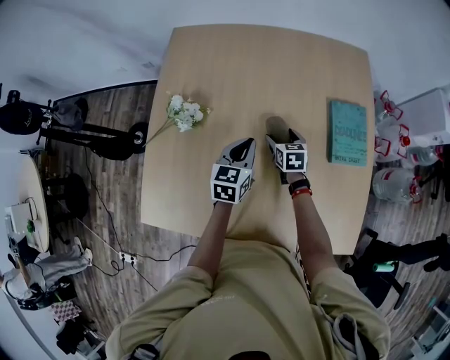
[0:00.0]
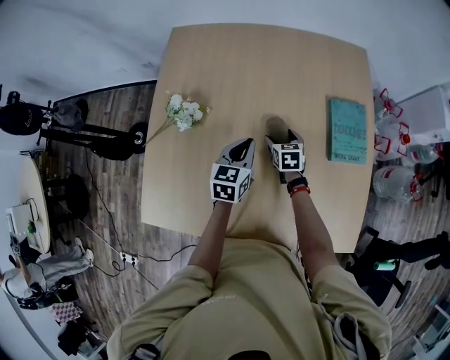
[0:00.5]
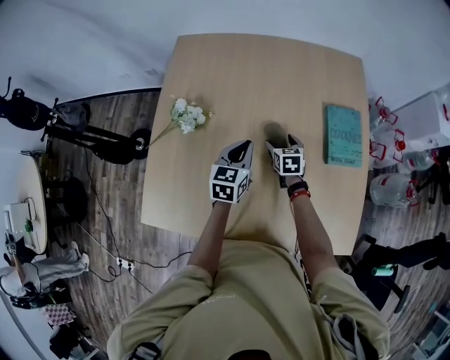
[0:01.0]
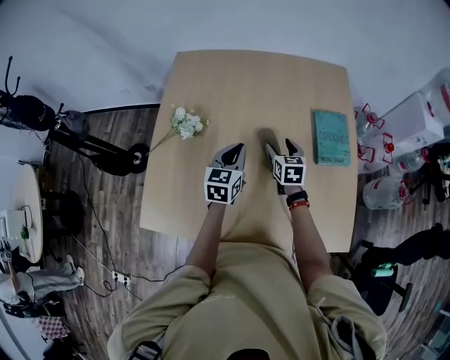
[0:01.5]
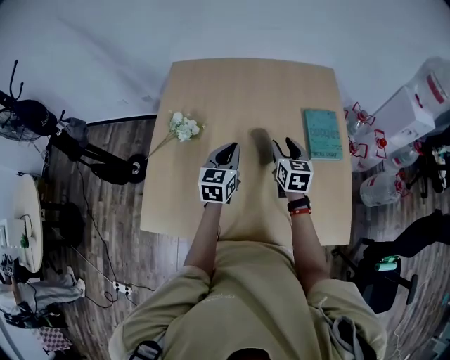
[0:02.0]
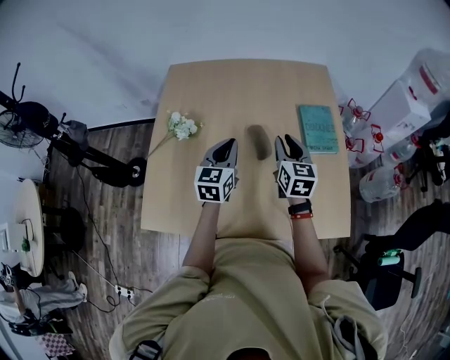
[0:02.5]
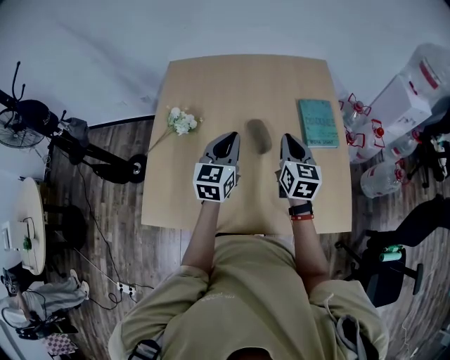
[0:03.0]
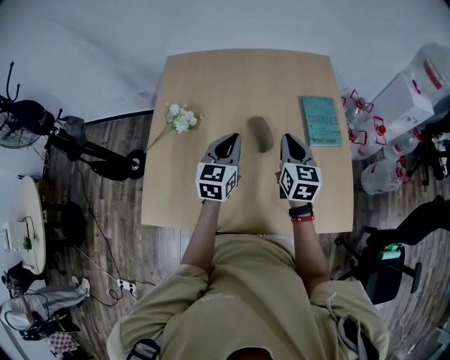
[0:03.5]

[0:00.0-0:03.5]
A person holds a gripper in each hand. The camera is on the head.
0:00.0 to 0:02.0: The left gripper shifts roughly 15 cm backward and upward. The right gripper heads upward and backward, covering some 25 cm, changes its angle by about 20 degrees, and closes its fingers.
0:02.0 to 0:03.5: The right gripper travels backward and upward by some 10 cm, and closes.

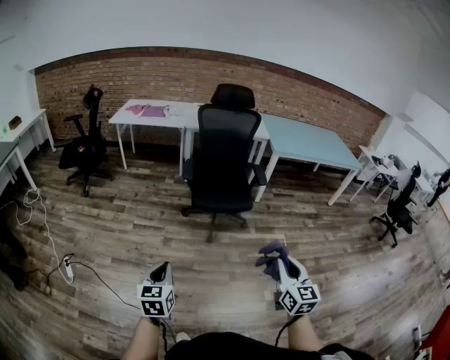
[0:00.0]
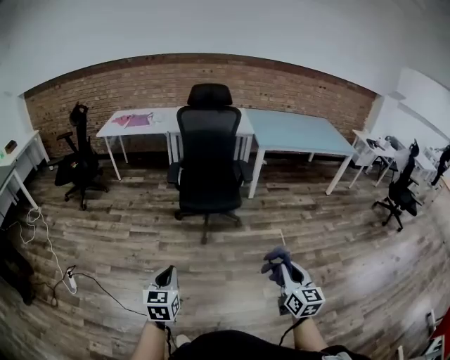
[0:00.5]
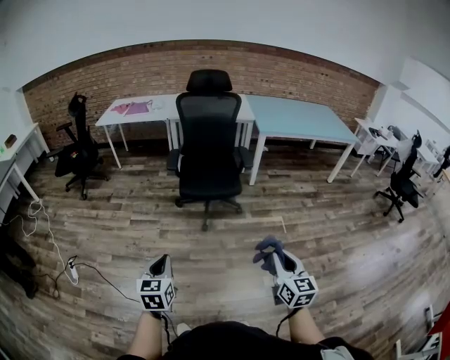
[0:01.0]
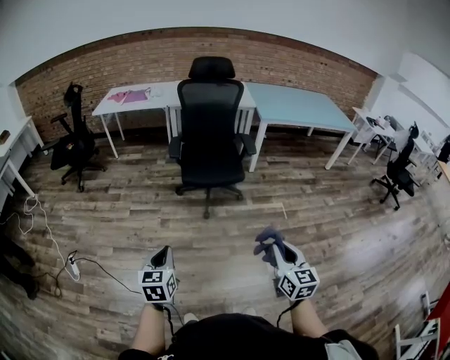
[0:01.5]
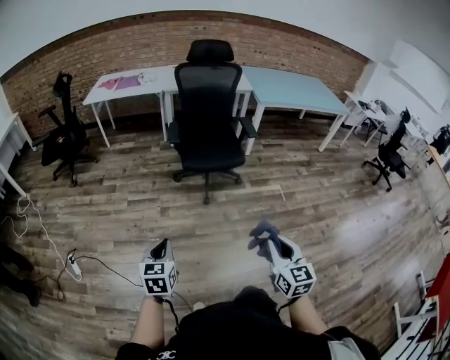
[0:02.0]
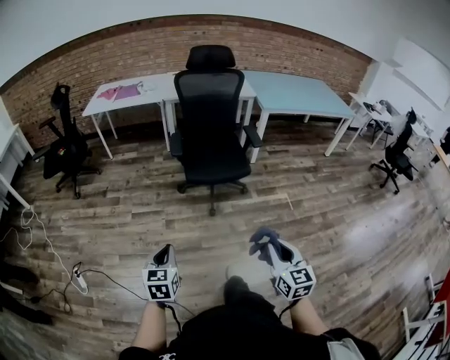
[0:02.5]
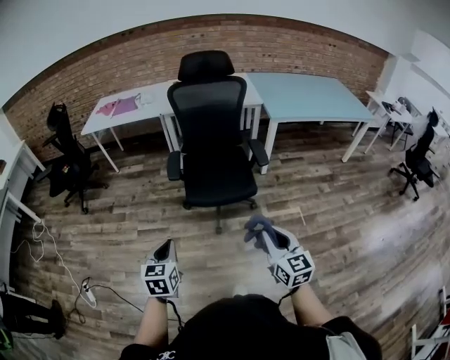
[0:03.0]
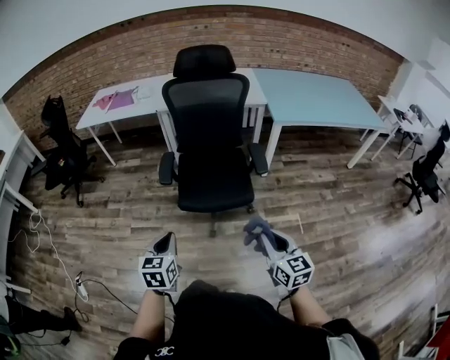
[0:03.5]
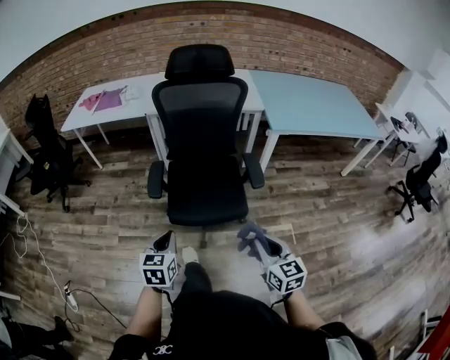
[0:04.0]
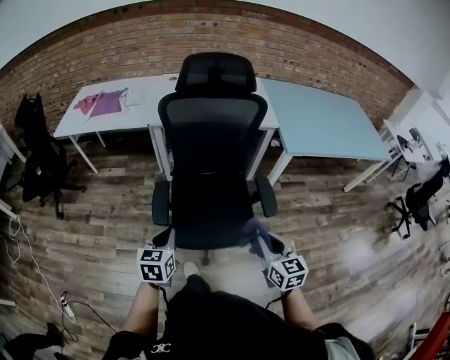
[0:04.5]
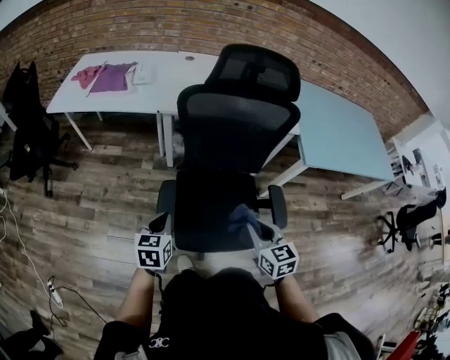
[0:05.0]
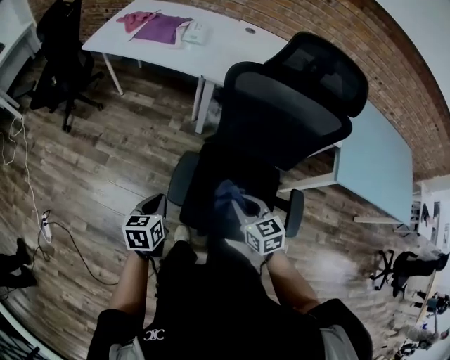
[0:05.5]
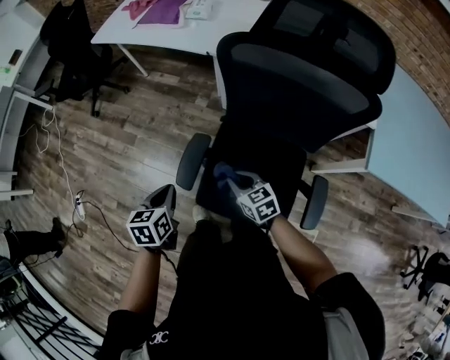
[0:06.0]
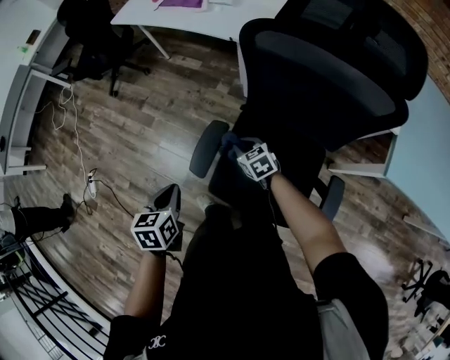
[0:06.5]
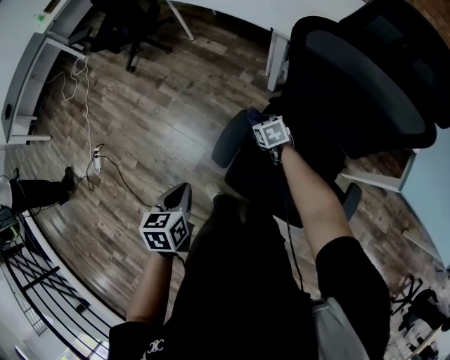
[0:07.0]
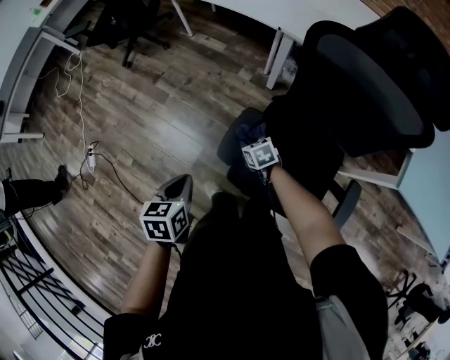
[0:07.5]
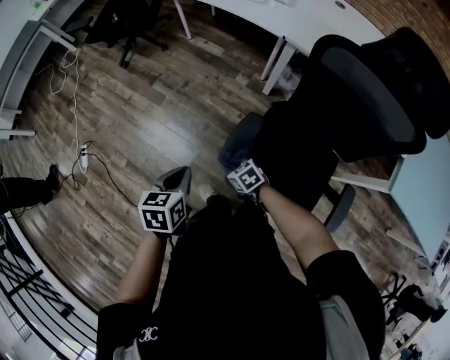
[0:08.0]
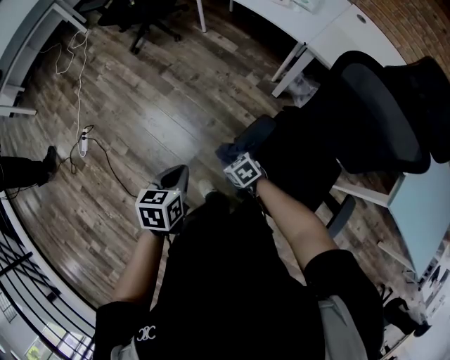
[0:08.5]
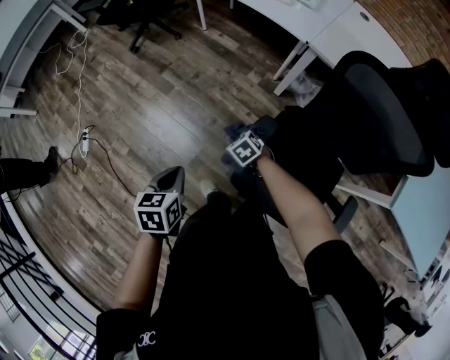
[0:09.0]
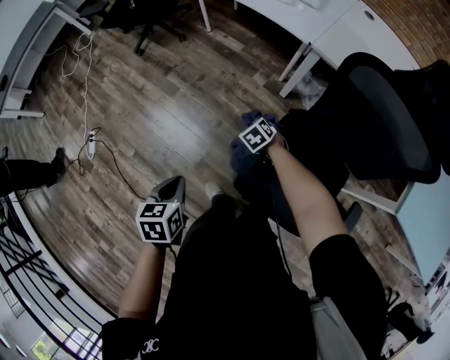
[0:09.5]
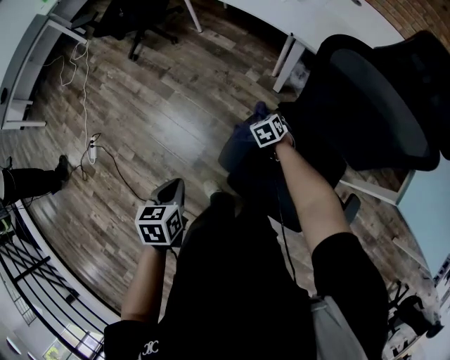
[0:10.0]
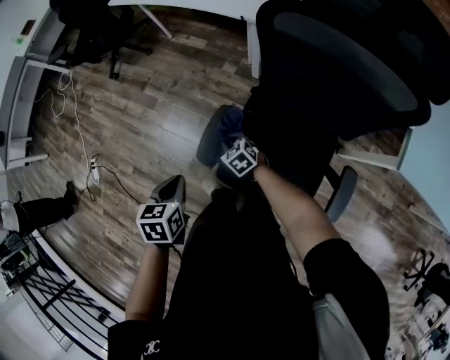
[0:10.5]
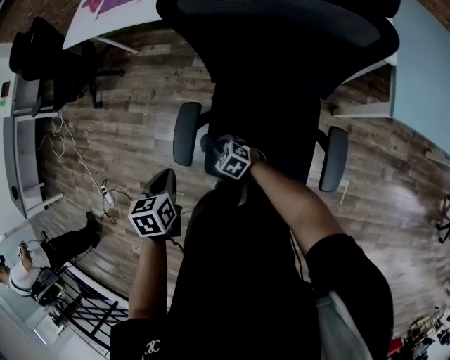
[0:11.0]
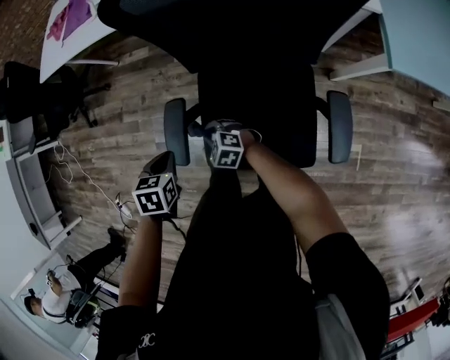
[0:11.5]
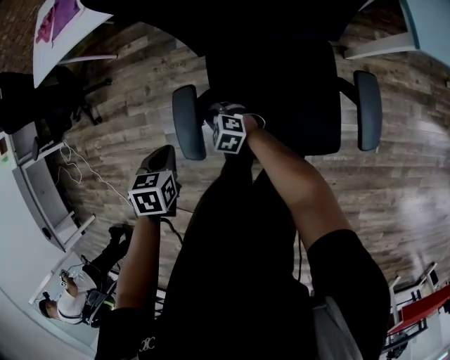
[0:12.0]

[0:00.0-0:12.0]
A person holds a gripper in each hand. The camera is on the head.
0:00.0 to 0:02.0: The left gripper shifts some 5 cm downward, and travels to the right and back again, approximately 15 cm each way. Meanwhile the right gripper shifts roughly 10 cm downward and backward, and reaches approximately 15 cm to the right, then returns.
0:02.0 to 0:04.0: The pair of grippers is taken forward, roughly 50 cm.
0:04.0 to 0:06.0: The left gripper moves roughly 30 cm, and changes its angle by some 40 degrees. The right gripper ends up approximately 50 cm from where it was, and swivels roughly 50 degrees.
0:06.0 to 0:08.0: The right gripper goes some 25 cm to the left and downward, and turns by about 30 degrees; the left gripper is displaced to the left by approximately 10 cm.
0:08.0 to 0:10.0: The right gripper moves forward and to the right, some 25 cm, and changes its angle by about 30 degrees.
0:10.0 to 0:12.0: The left gripper heads to the right, forward and downward, covering roughly 15 cm, and twists about 40 degrees clockwise, seen from behind, while the right gripper heads backward and to the left, covering some 15 cm.

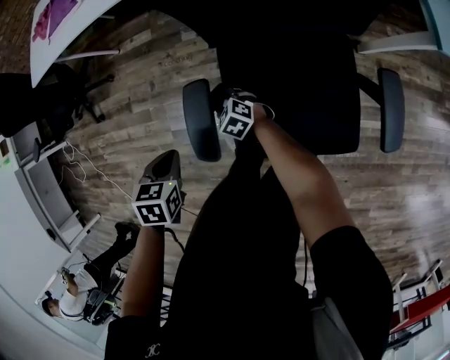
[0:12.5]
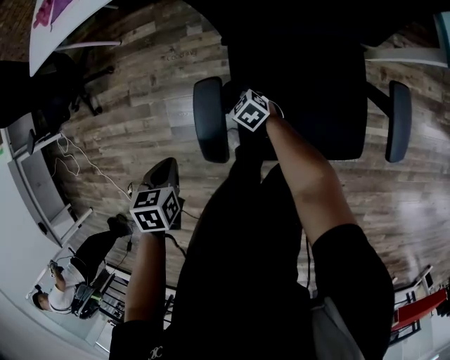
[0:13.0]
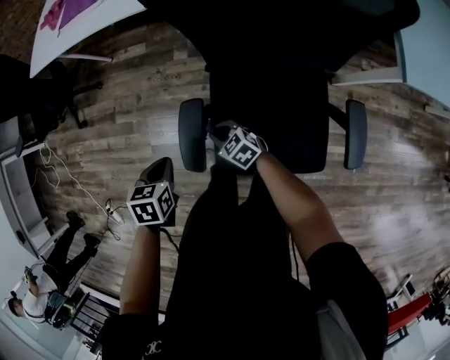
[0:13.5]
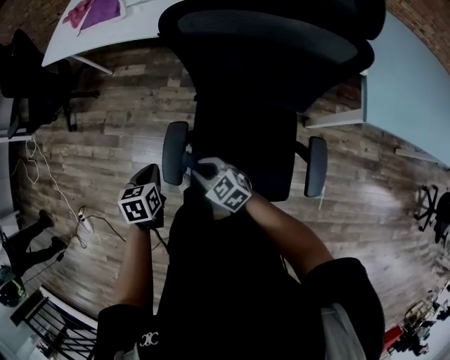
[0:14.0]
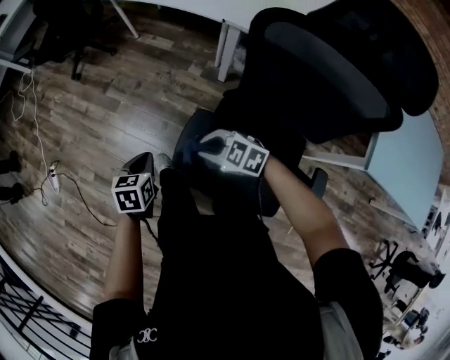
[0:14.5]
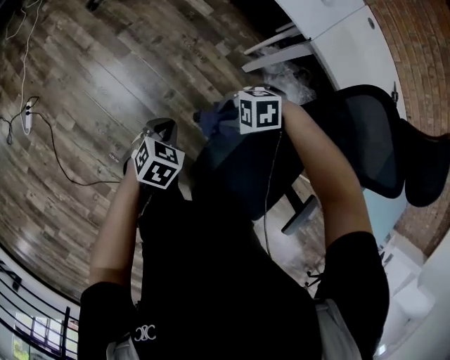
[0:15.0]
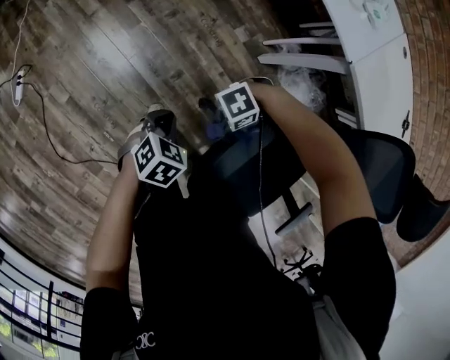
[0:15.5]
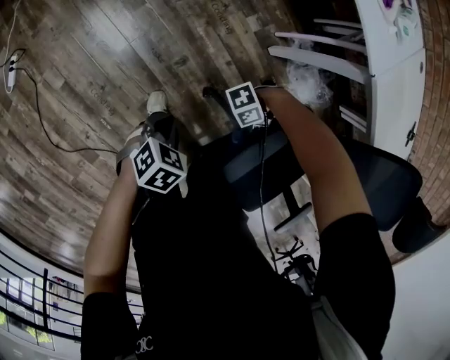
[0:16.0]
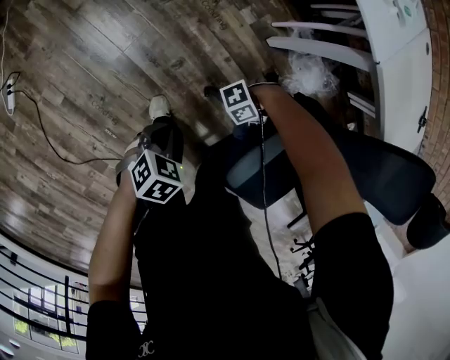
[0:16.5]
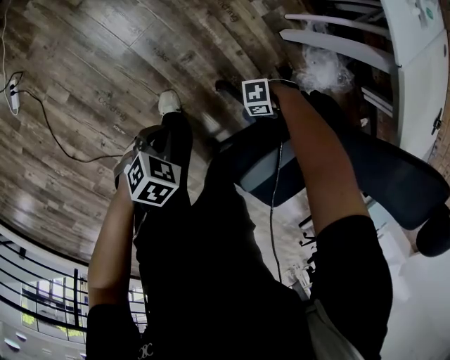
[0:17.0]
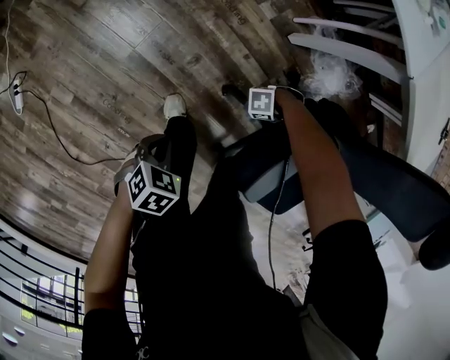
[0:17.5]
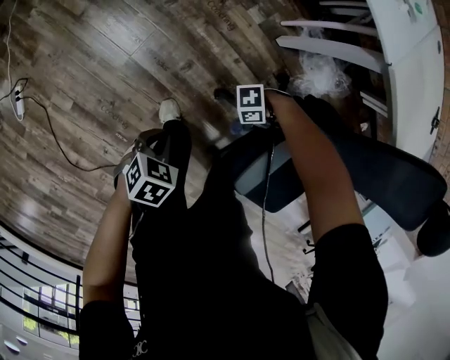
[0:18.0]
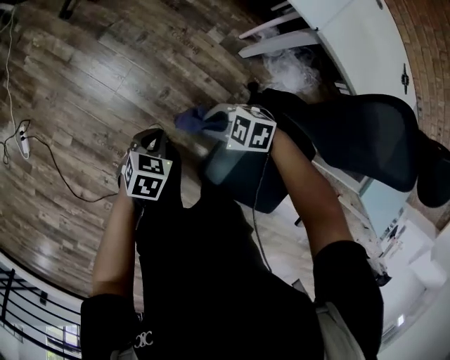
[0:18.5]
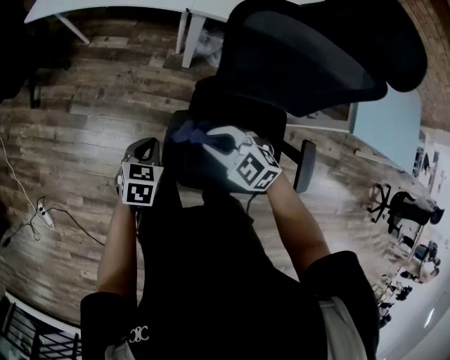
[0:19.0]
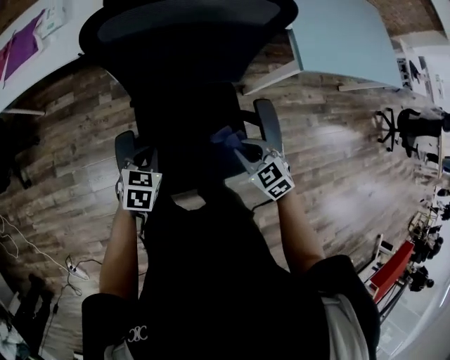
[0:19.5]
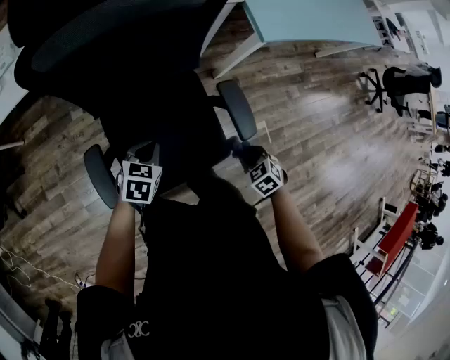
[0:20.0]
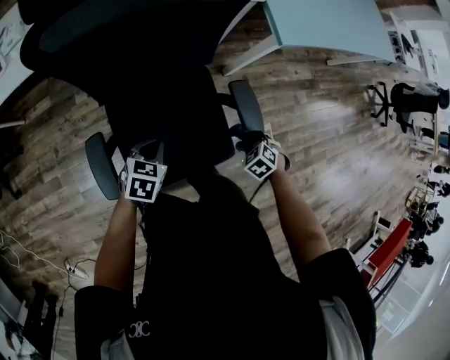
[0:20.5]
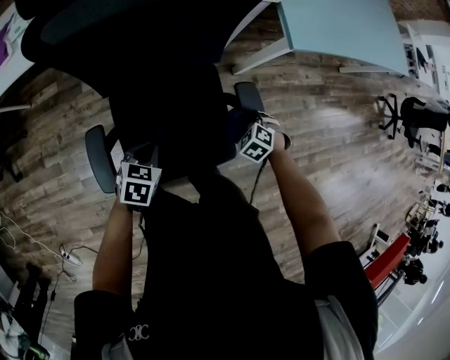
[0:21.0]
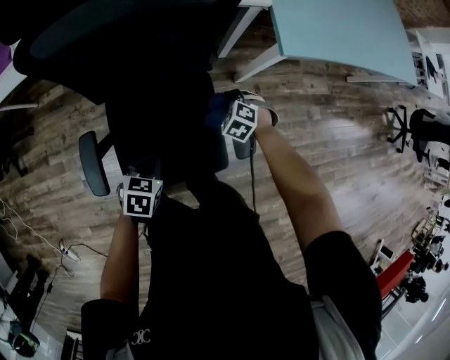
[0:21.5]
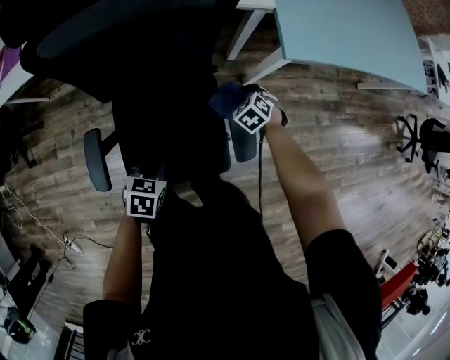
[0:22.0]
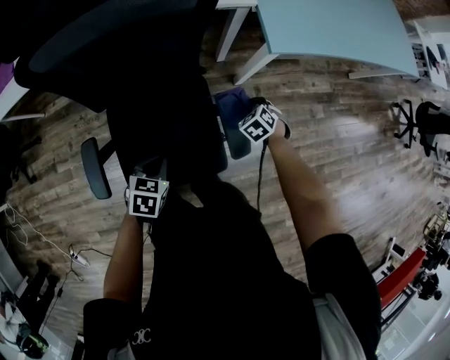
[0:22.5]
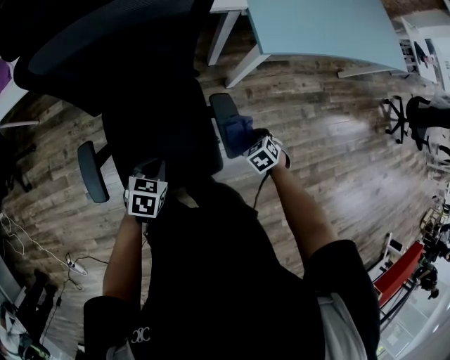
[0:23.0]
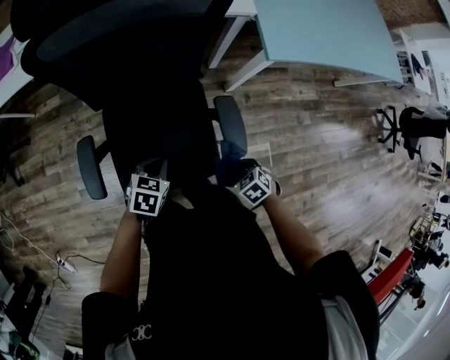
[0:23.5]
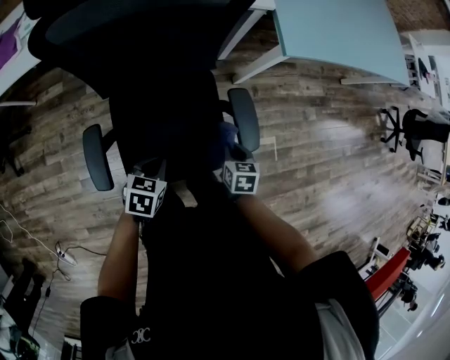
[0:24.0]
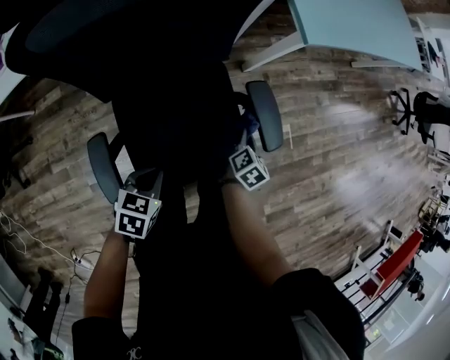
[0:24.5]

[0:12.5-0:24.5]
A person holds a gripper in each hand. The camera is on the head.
0:12.5 to 0:14.5: The left gripper changes its angle by roughly 40 degrees, while the right gripper shifts approximately 25 cm upward, and swivels roughly 40 degrees.
0:14.5 to 0:16.5: Both grippers move downward, about 20 cm. The right gripper rotates roughly 110 degrees, while the left gripper turns by roughly 20 degrees.
0:16.5 to 0:18.5: The left gripper heads upward, covering roughly 5 cm; the right gripper shifts by about 20 cm, and tips its fingers downward by roughly 30 degrees.
0:18.5 to 0:20.5: The two grippers travel together, approximately 50 cm. The left gripper twists approximately 40 degrees clockwise, seen from behind, while the right gripper changes its angle by some 90 degrees.
0:20.5 to 0:22.5: The right gripper changes place by approximately 20 cm. Meanwhile the left gripper ends up approximately 10 cm from where it was.
0:22.5 to 0:24.5: The right gripper ends up approximately 15 cm from where it was, and rolls clockwise, seen from behind, by approximately 90 degrees, while the left gripper changes place by approximately 10 cm.
